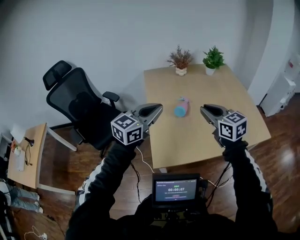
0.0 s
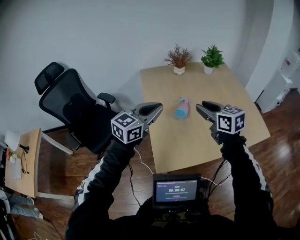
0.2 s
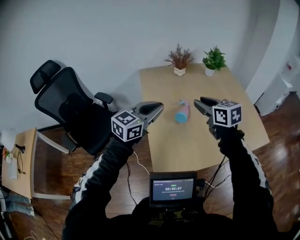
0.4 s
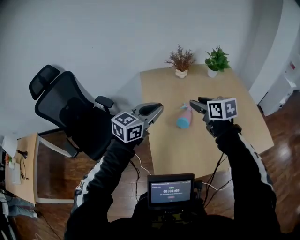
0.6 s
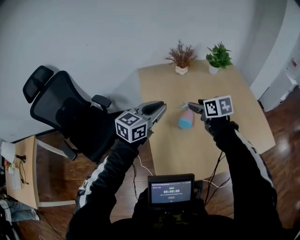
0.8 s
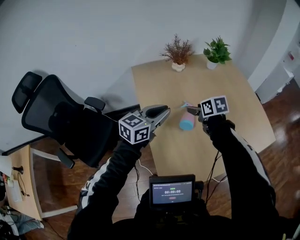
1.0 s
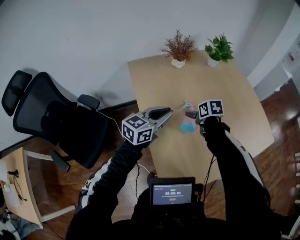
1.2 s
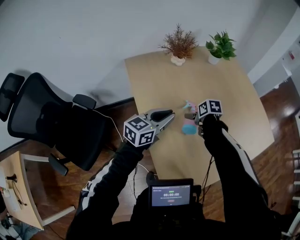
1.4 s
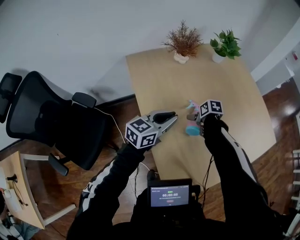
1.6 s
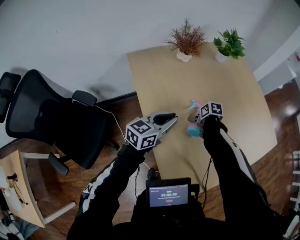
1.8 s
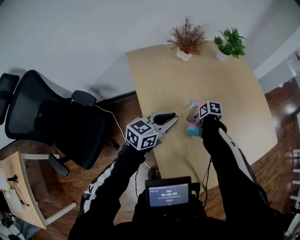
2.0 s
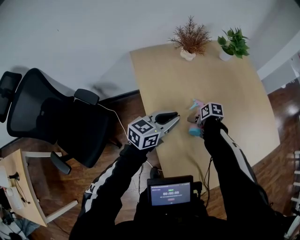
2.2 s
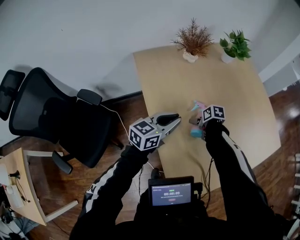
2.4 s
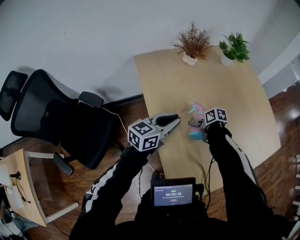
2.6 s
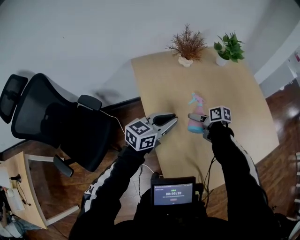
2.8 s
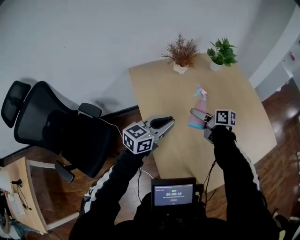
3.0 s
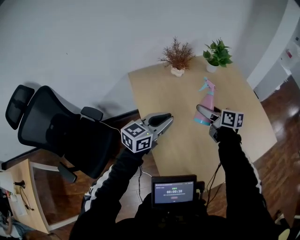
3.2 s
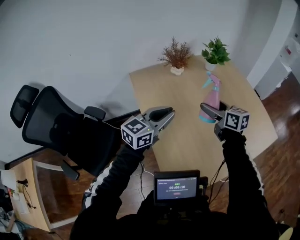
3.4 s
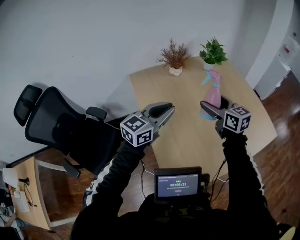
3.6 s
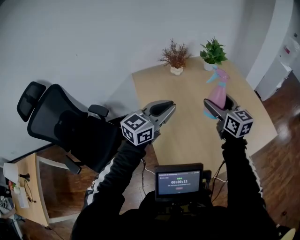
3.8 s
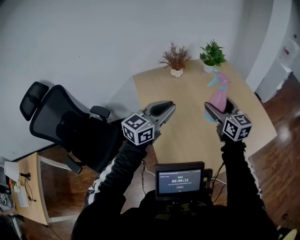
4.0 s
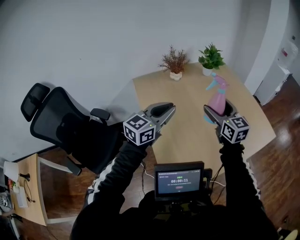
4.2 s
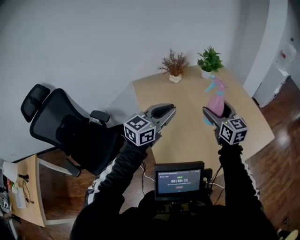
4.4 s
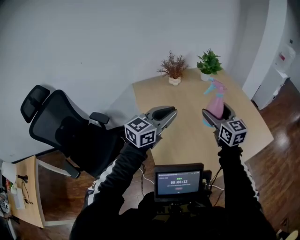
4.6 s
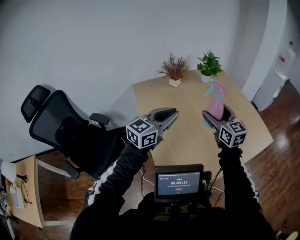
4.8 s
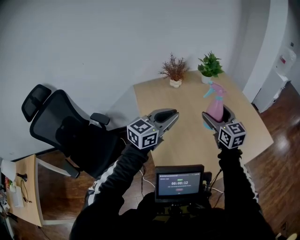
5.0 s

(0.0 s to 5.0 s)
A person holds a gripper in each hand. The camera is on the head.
0.0 s - 1.6 s: The pair of grippers is taken forward, some 70 cm. The right gripper moves downward, some 40 cm, tips its fingers downward by roughly 50 degrees, and opens. Meanwhile the left gripper turns by about 30 degrees.
1.6 s - 3.4 s: The left gripper is displaced upward and backward by approximately 20 cm; the right gripper moves upward, approximately 30 cm, and tips its fingers upward by some 50 degrees.
3.4 s - 5.0 s: Both grippers move backward, to the right and upward, approximately 20 cm. The right gripper changes its angle by some 30 degrees.

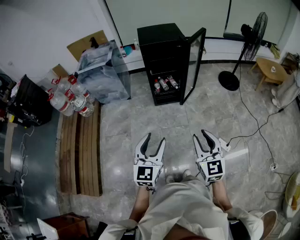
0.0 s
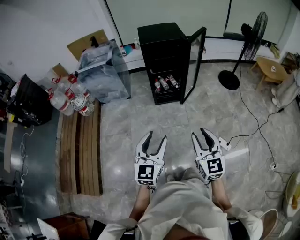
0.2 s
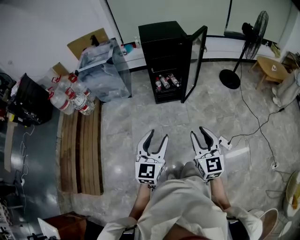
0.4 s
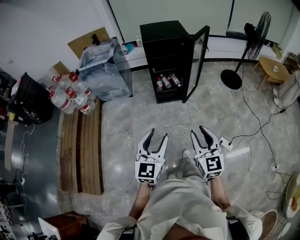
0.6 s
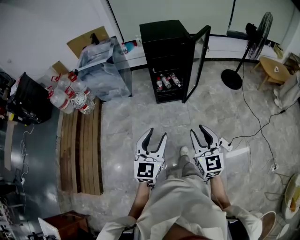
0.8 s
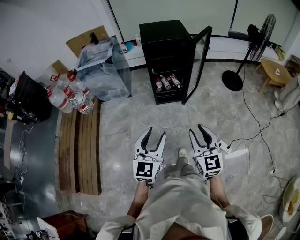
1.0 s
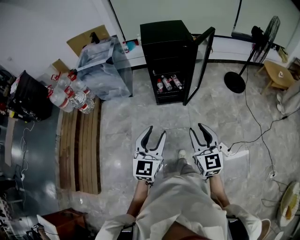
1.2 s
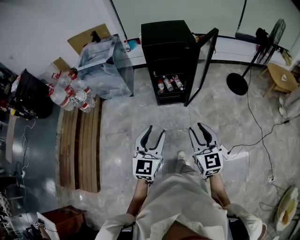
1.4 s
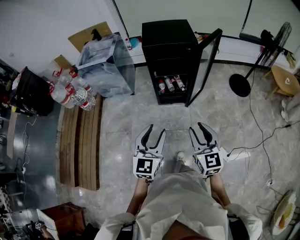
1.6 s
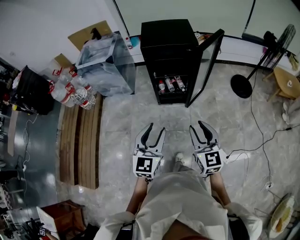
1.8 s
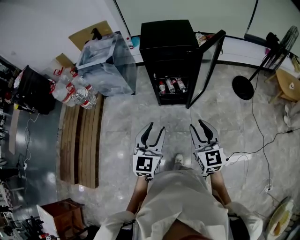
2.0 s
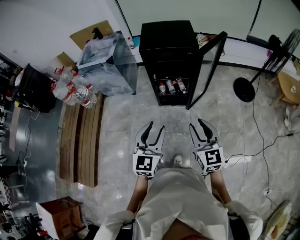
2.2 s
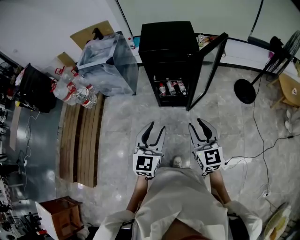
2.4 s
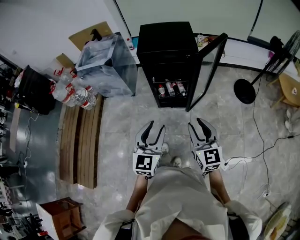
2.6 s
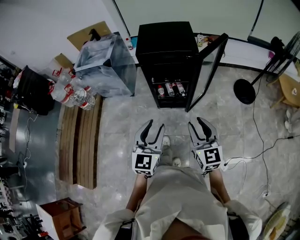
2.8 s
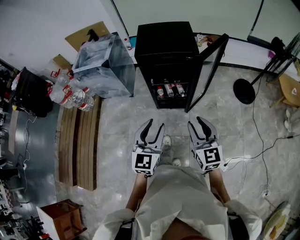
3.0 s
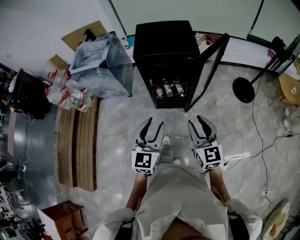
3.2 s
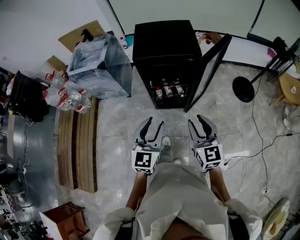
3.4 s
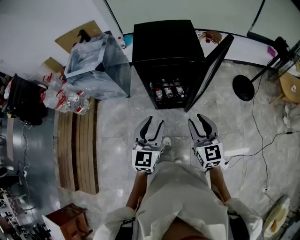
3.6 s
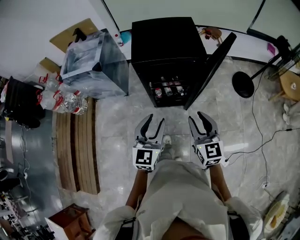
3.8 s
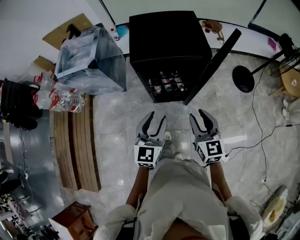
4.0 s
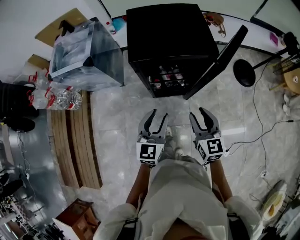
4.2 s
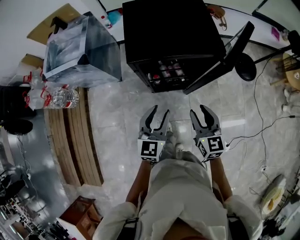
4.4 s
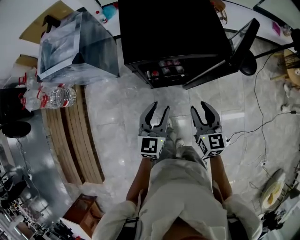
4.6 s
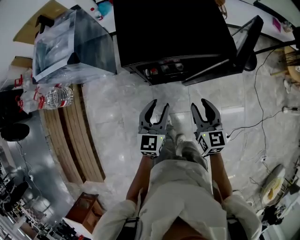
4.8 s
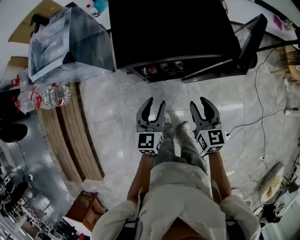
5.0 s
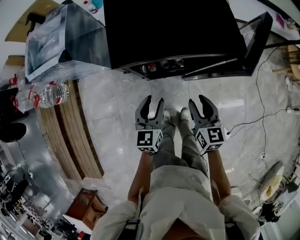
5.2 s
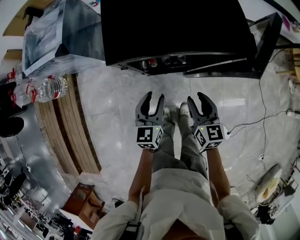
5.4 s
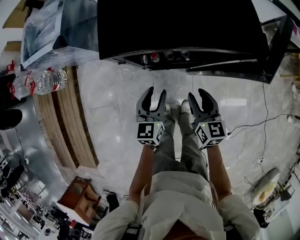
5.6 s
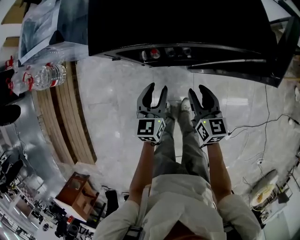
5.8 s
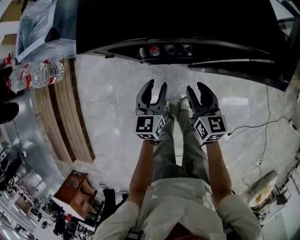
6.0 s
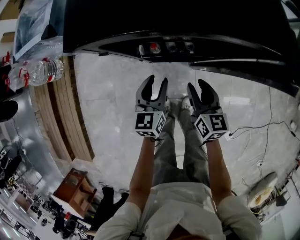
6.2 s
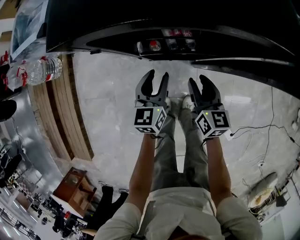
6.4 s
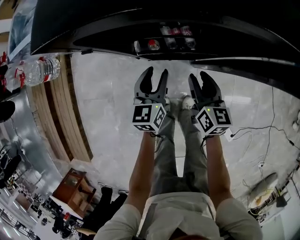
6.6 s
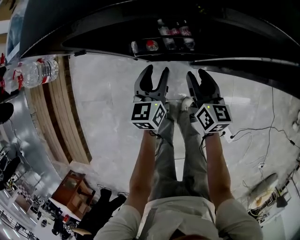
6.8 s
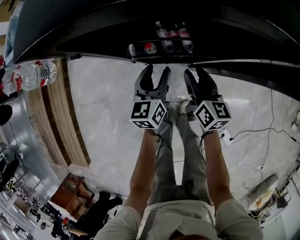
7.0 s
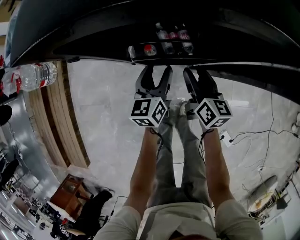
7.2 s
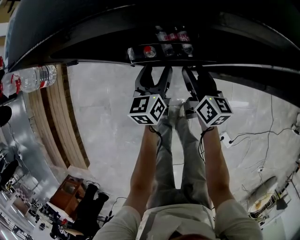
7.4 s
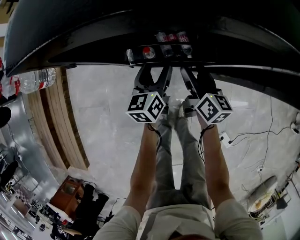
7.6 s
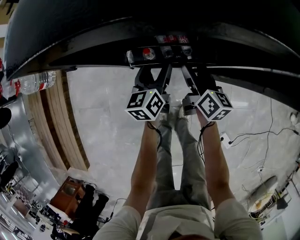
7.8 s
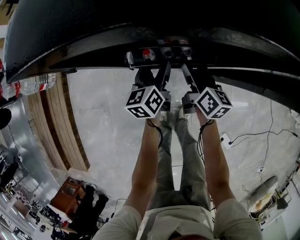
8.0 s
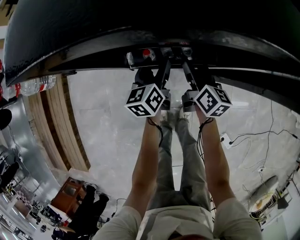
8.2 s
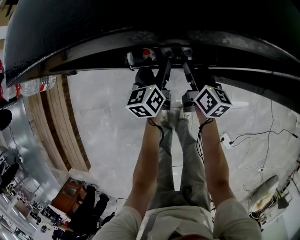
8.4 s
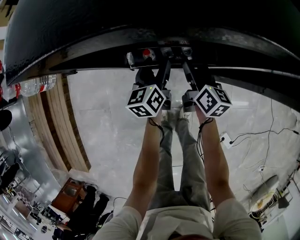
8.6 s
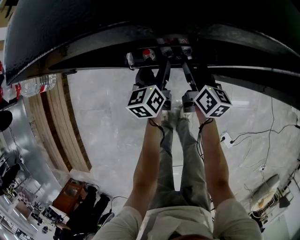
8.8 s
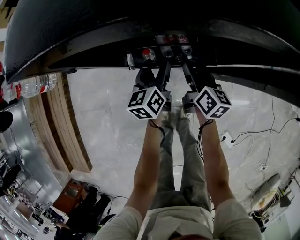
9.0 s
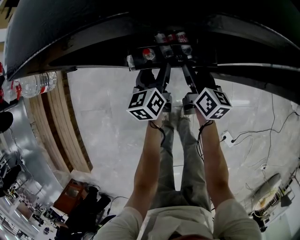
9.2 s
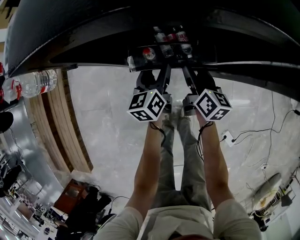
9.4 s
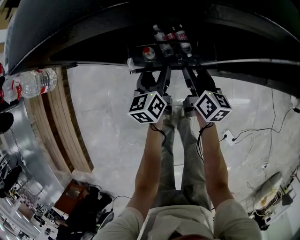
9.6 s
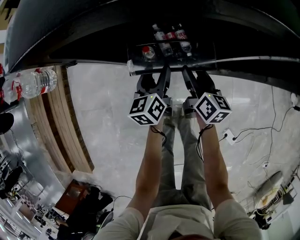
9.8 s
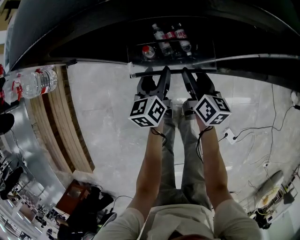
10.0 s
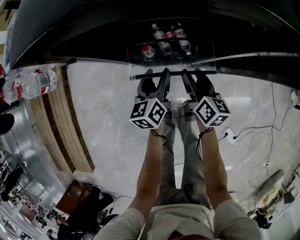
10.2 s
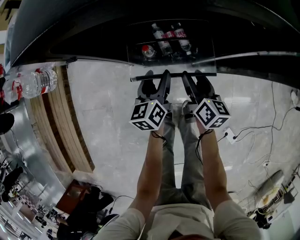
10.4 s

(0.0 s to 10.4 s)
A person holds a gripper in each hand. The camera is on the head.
0.0 s - 1.4 s: Both grippers move forward, some 15 cm.
1.4 s - 3.0 s: Both grippers travel together forward and to the right, approximately 20 cm.
3.0 s - 4.4 s: Both grippers move forward and downward, roughly 25 cm.
4.4 s - 6.0 s: The grippers both shift downward by approximately 20 cm.
6.0 s - 7.4 s: The grippers both shift downward and forward by some 10 cm.
7.4 s - 9.0 s: There are only small adjustments of the grippers.
9.0 s - 10.4 s: The two grippers go roughly 5 cm backward.

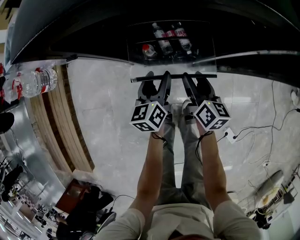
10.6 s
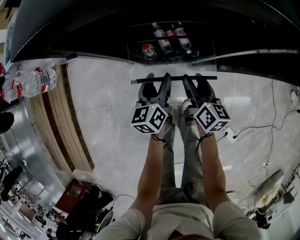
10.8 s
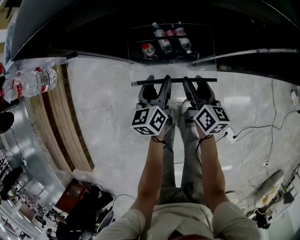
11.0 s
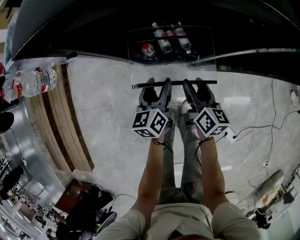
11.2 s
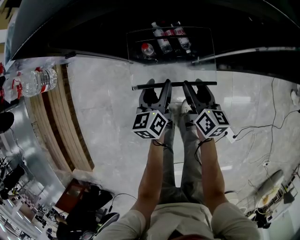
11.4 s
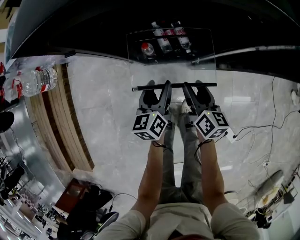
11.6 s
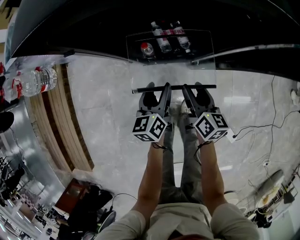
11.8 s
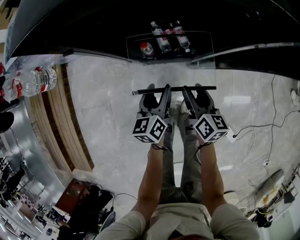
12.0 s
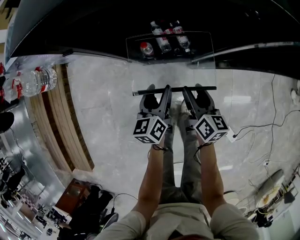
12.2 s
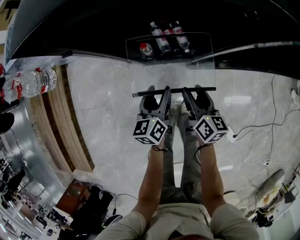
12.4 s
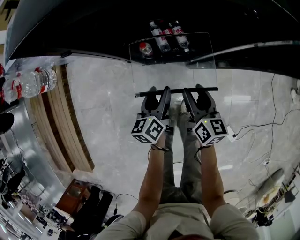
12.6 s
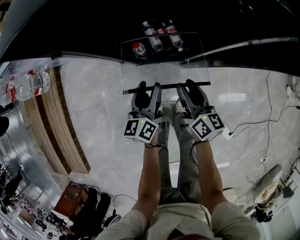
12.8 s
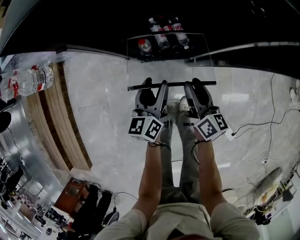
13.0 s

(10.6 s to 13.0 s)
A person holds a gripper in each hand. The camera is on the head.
10.6 s - 11.8 s: Both grippers travel together backward, roughly 5 cm.
11.8 s - 13.0 s: The grippers move only a little.

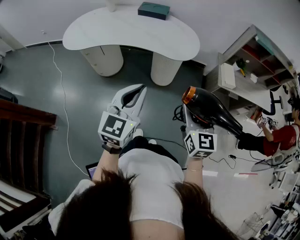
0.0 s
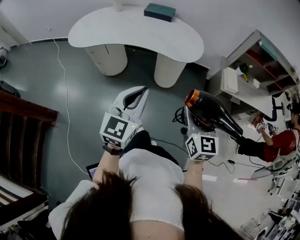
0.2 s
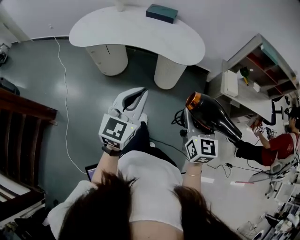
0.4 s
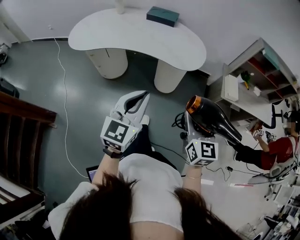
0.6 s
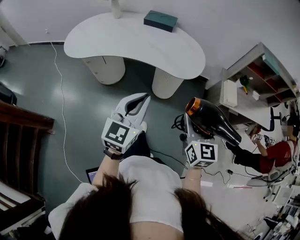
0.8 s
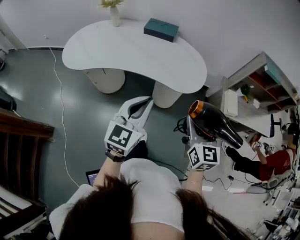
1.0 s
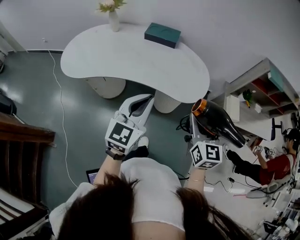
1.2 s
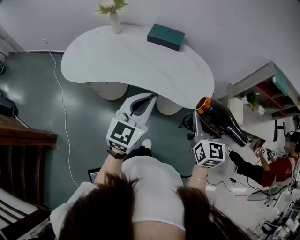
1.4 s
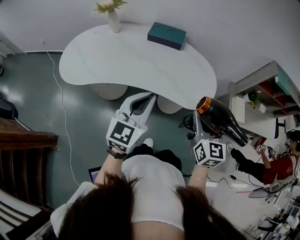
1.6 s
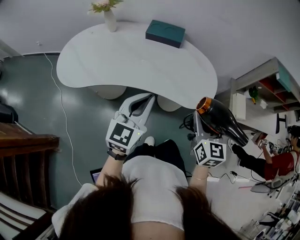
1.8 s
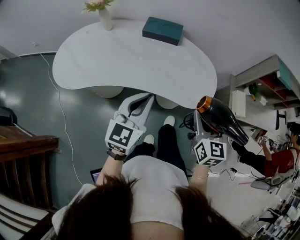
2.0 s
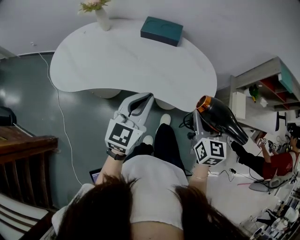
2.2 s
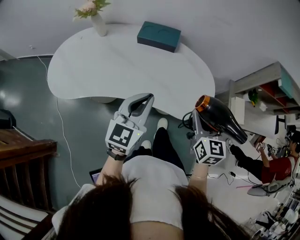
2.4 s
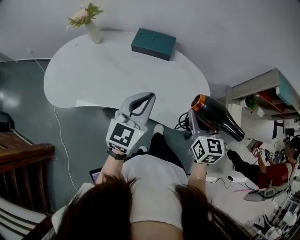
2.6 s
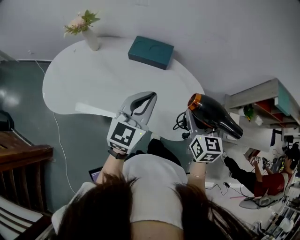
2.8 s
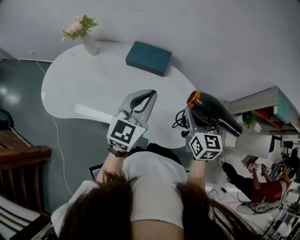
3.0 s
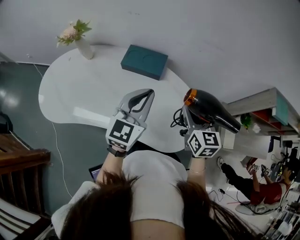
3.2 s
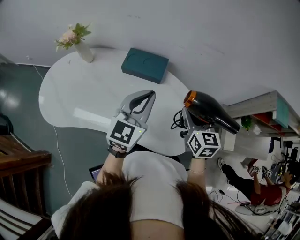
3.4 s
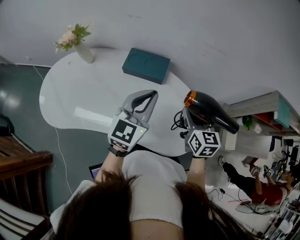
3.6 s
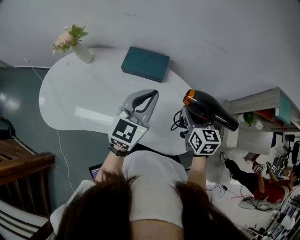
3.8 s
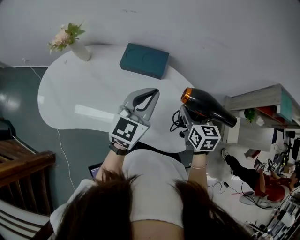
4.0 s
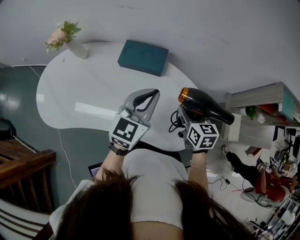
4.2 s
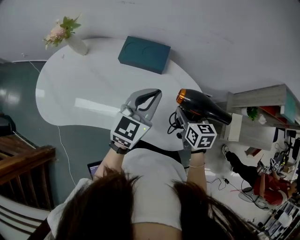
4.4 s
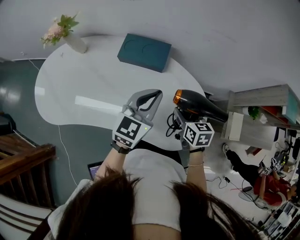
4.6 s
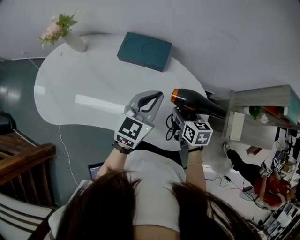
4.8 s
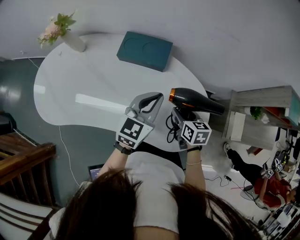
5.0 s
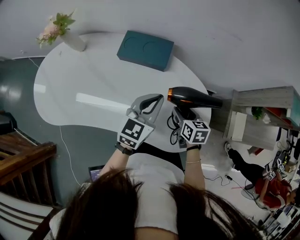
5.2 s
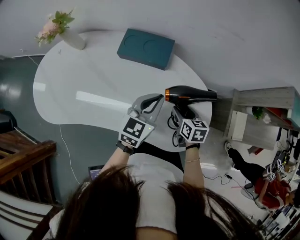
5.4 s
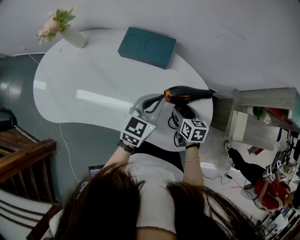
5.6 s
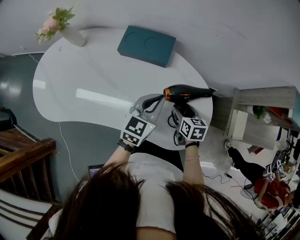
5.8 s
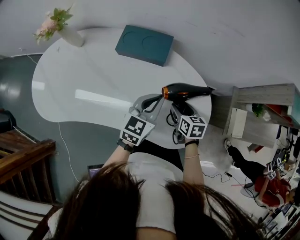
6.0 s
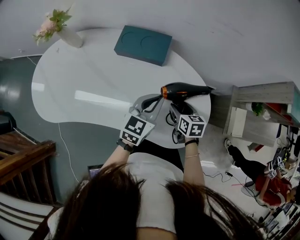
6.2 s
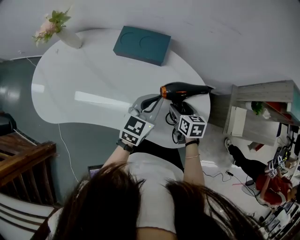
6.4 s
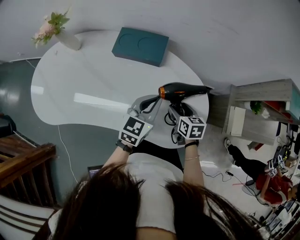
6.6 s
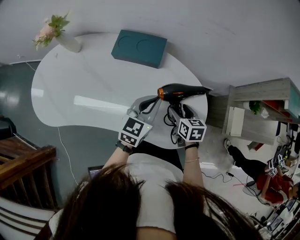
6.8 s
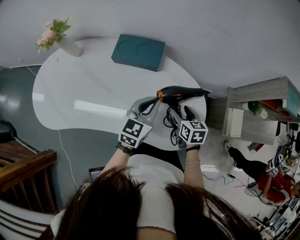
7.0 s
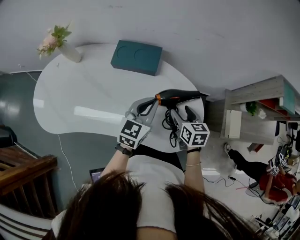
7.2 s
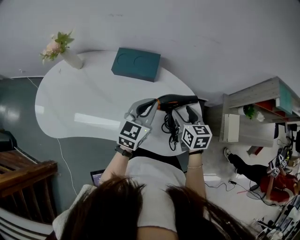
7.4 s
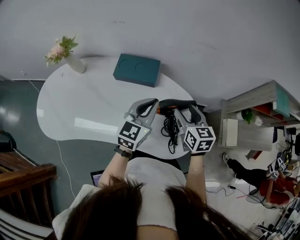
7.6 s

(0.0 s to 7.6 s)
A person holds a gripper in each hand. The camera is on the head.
0.0 s - 1.6 s: The grippers both shift forward by approximately 30 cm.
1.6 s - 3.0 s: The two grippers go some 25 cm forward.
3.0 s - 4.6 s: The right gripper shifts some 15 cm downward, and swivels approximately 30 degrees. Meanwhile the left gripper is displaced downward and forward by roughly 10 cm.
4.6 s - 6.0 s: The grippers both shift downward by some 10 cm.
6.0 s - 7.6 s: The left gripper shifts approximately 10 cm upward; the right gripper moves upward, approximately 20 cm, and swivels roughly 20 degrees.
